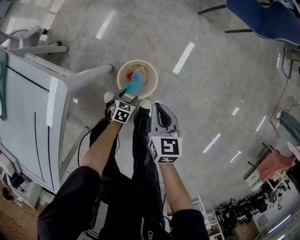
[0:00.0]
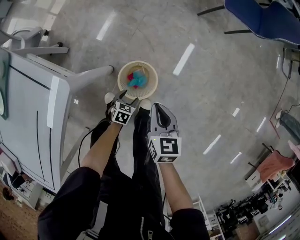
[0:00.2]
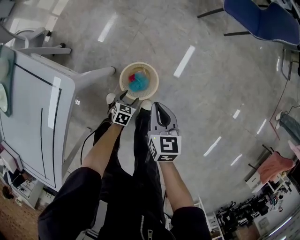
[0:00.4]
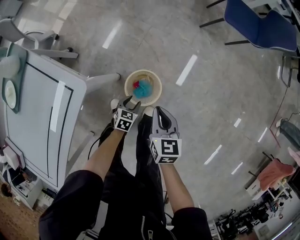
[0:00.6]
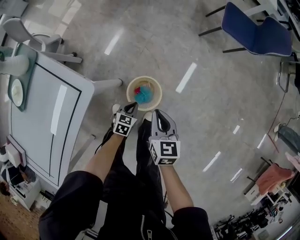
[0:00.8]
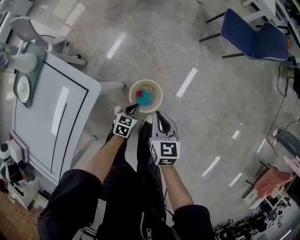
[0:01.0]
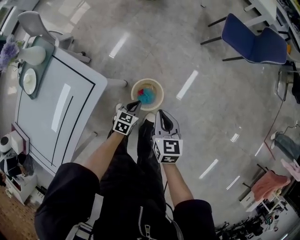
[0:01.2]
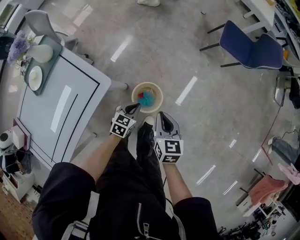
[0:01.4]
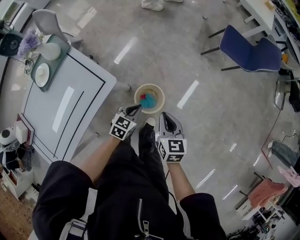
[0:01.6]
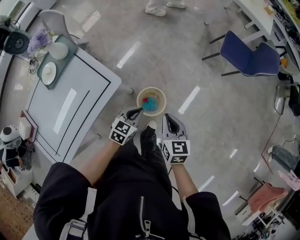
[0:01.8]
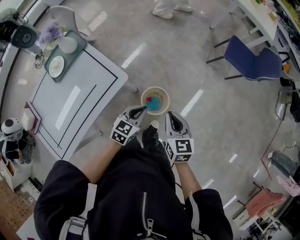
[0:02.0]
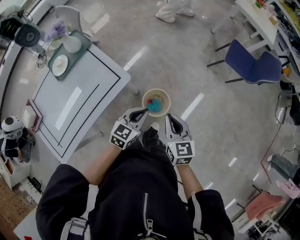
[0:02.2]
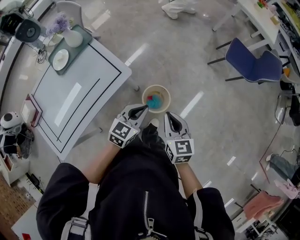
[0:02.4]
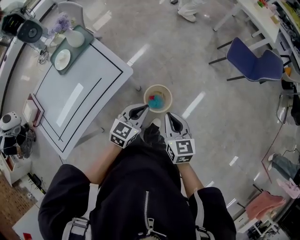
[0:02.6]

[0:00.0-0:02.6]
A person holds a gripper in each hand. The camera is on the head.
0:00.0 to 0:01.2: The right gripper shifts some 15 cm upward, while the left gripper is displaced upward by approximately 25 cm, and closes.
0:01.2 to 0:02.6: The left gripper travels upward by some 30 cm, and swivels approximately 20 degrees; the right gripper shifts roughly 15 cm upward and backward.

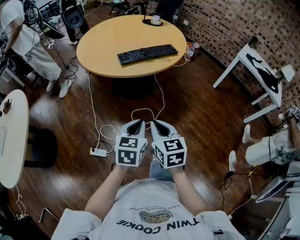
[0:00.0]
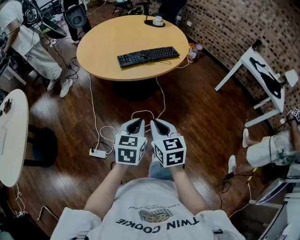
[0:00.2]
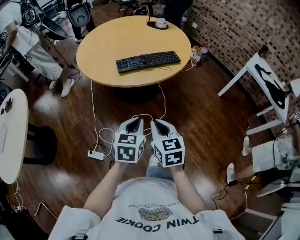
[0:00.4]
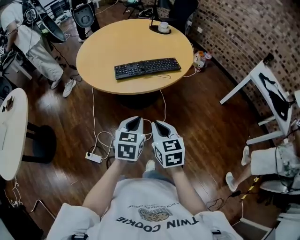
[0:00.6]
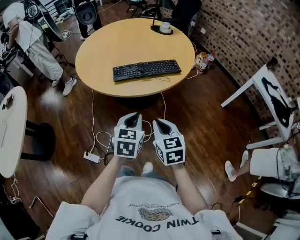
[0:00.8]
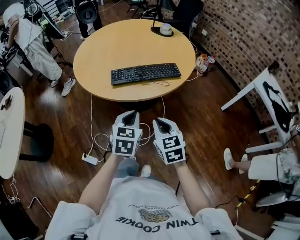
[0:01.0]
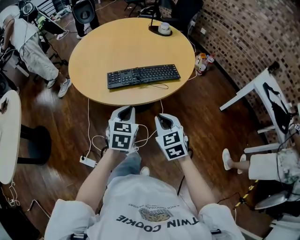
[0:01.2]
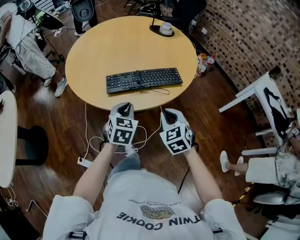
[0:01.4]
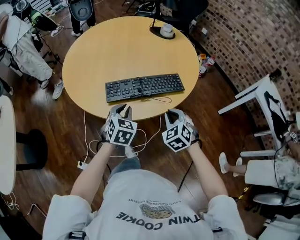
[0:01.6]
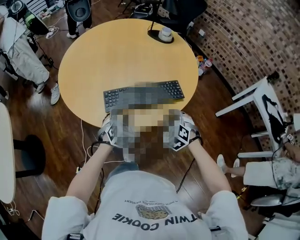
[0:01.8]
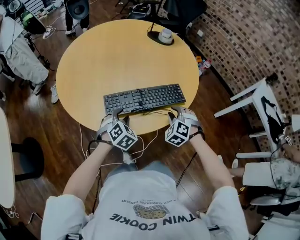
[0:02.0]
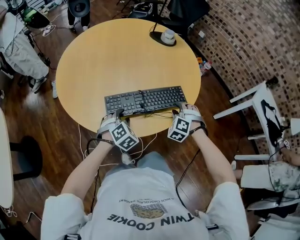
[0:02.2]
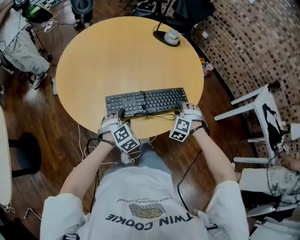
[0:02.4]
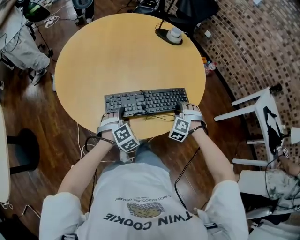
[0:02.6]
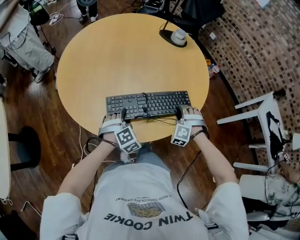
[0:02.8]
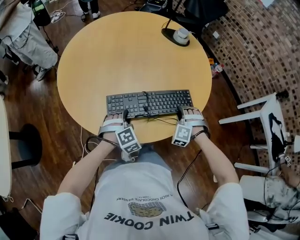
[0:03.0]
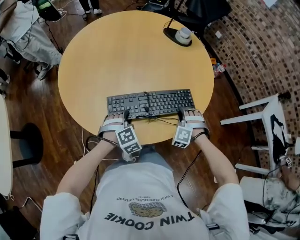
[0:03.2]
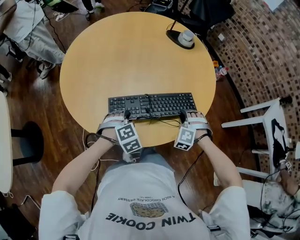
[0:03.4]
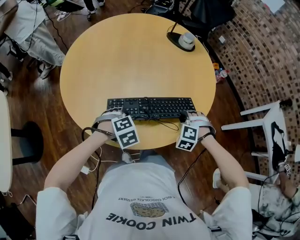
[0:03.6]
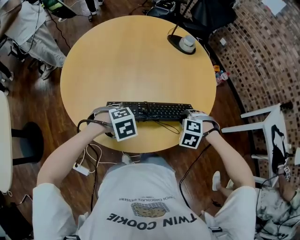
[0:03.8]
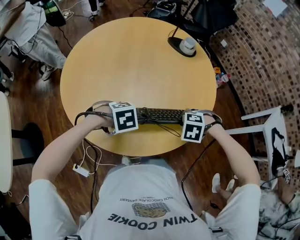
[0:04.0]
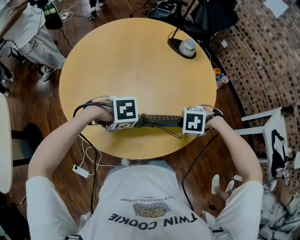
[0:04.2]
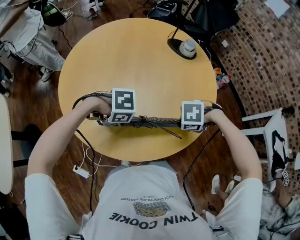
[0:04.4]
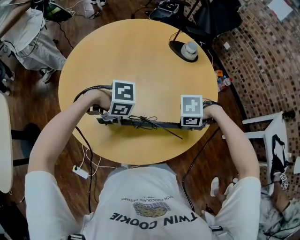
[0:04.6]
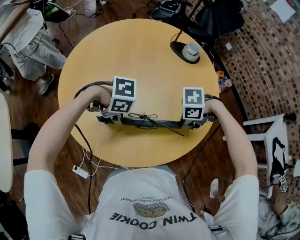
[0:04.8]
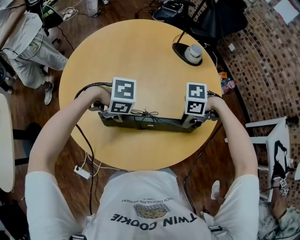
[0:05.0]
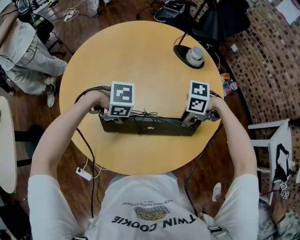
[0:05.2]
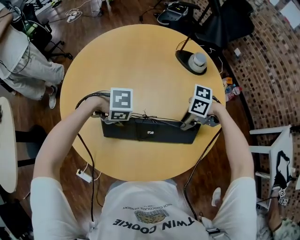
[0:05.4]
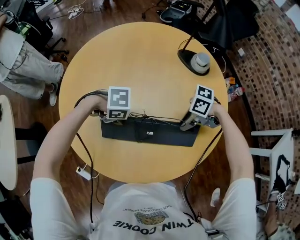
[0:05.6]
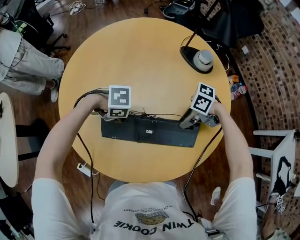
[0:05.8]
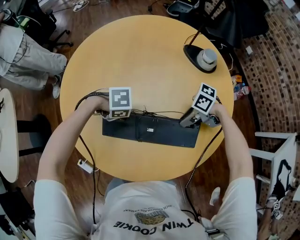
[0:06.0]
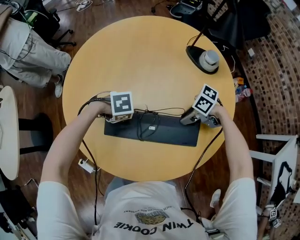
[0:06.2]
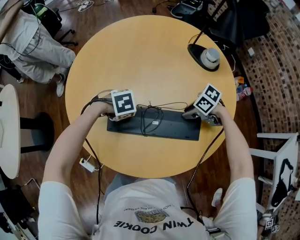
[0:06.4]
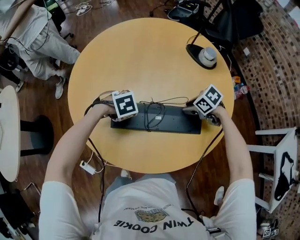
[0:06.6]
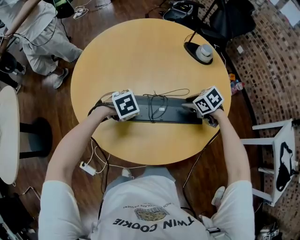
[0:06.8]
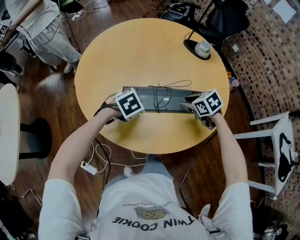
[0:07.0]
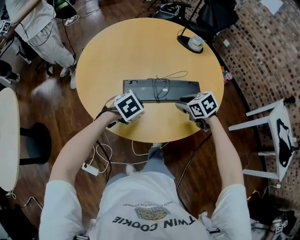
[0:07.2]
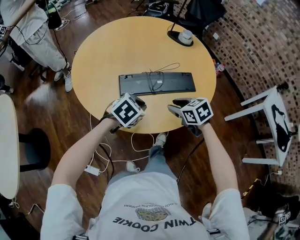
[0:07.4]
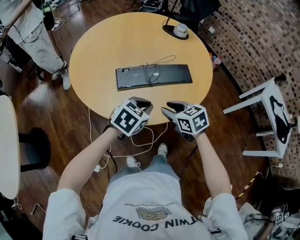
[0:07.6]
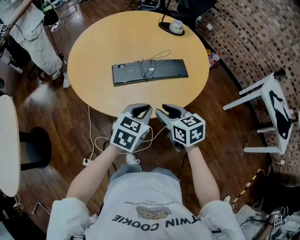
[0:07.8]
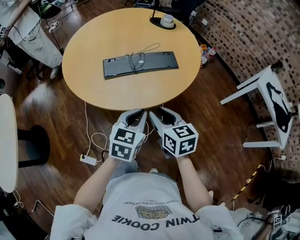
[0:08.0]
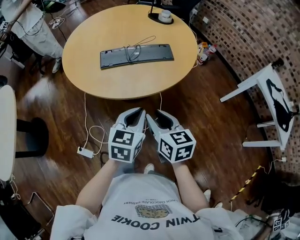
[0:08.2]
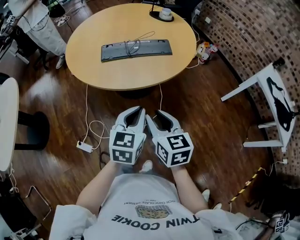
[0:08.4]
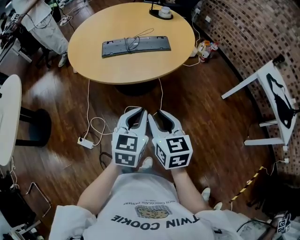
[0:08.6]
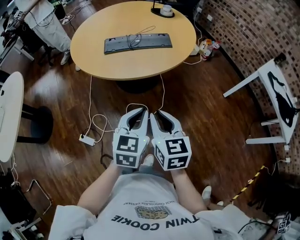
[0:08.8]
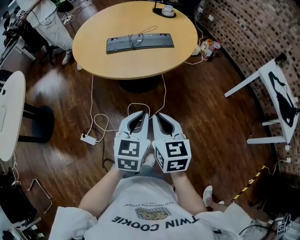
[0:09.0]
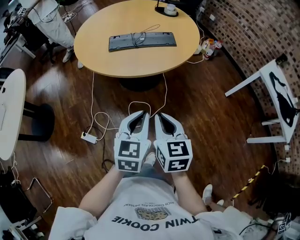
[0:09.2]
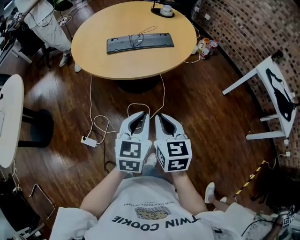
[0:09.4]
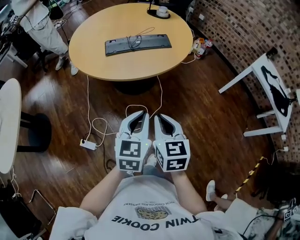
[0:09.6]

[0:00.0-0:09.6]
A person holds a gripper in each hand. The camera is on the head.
0:00.0 to 0:01.6: The two grippers travel together, forward, roughly 40 cm. The left gripper swivels roughly 20 degrees. The right gripper twists roughly 50 degrees counterclockwise, seen from behind.
0:01.6 to 0:03.2: The left gripper heads downward and forward, covering approximately 20 cm, turns by some 40 degrees, and opens its fingers, while the right gripper travels forward and downward by some 25 cm, rotates around the line of its fingers by about 50 degrees, counterclockwise from behind, and opens.
0:03.2 to 0:04.8: Both grippers move upward, some 10 cm. The left gripper swivels roughly 70 degrees. Meanwhile the right gripper turns by some 80 degrees.
0:04.8 to 0:06.4: The right gripper ends up approximately 15 cm from where it was, and rotates roughly 30 degrees. Meanwhile the left gripper moves some 15 cm, and changes its angle by roughly 30 degrees.
0:06.4 to 0:08.0: The right gripper ends up roughly 50 cm from where it was, and rotates some 80 degrees, while the left gripper changes place by roughly 40 cm, angles its fingers upward, by roughly 50 degrees, and closes up.
0:08.0 to 0:09.6: Both grippers move backward, roughly 20 cm. The right gripper closes its fingers.

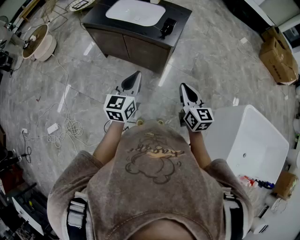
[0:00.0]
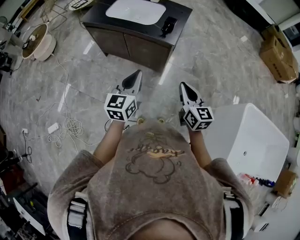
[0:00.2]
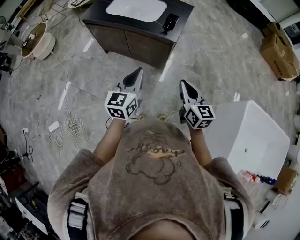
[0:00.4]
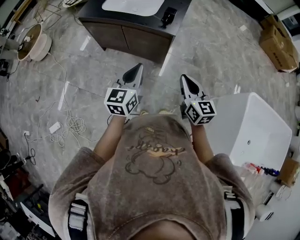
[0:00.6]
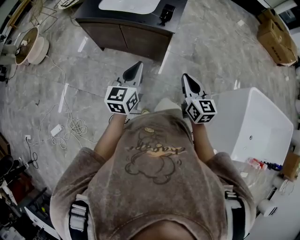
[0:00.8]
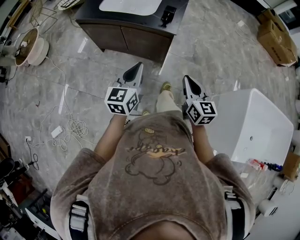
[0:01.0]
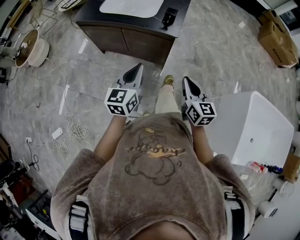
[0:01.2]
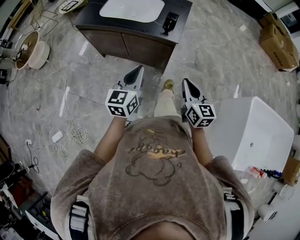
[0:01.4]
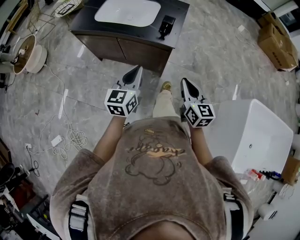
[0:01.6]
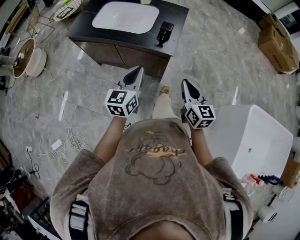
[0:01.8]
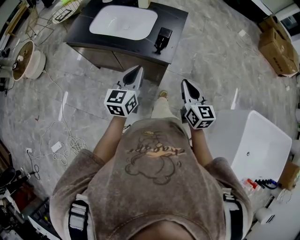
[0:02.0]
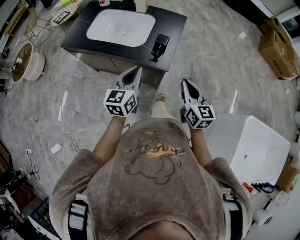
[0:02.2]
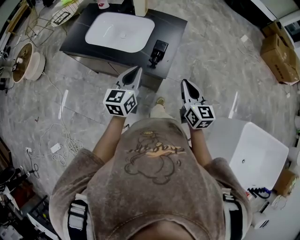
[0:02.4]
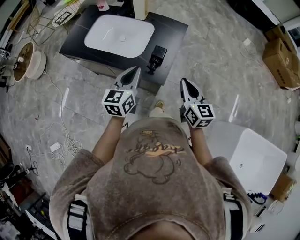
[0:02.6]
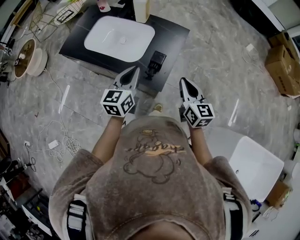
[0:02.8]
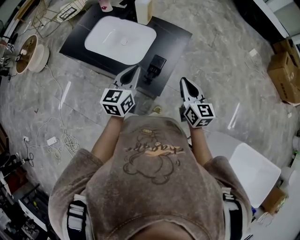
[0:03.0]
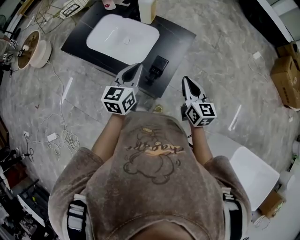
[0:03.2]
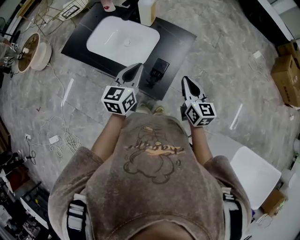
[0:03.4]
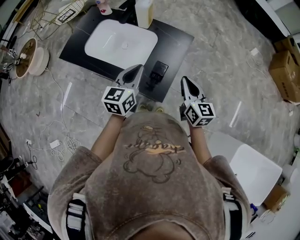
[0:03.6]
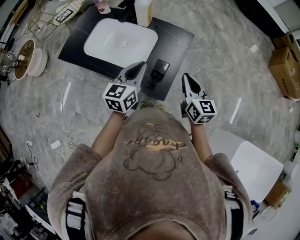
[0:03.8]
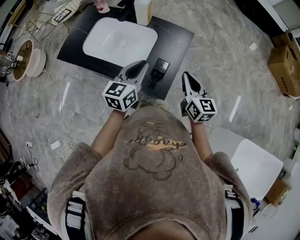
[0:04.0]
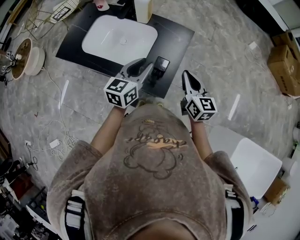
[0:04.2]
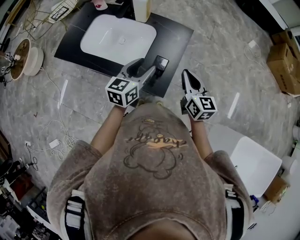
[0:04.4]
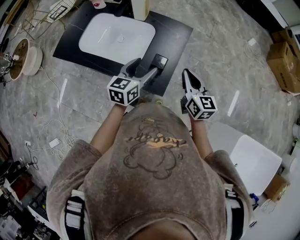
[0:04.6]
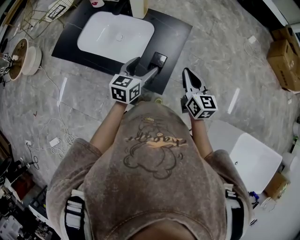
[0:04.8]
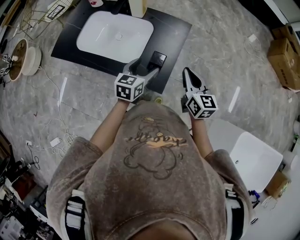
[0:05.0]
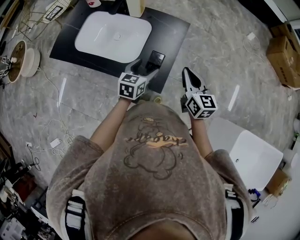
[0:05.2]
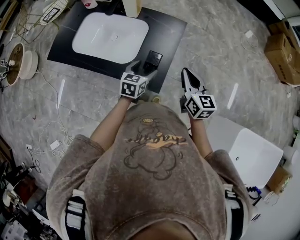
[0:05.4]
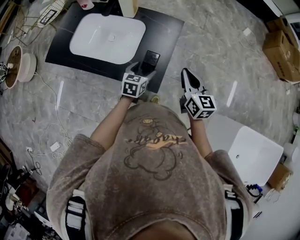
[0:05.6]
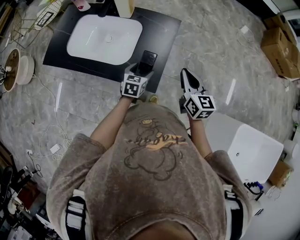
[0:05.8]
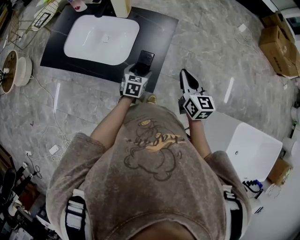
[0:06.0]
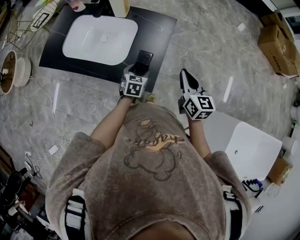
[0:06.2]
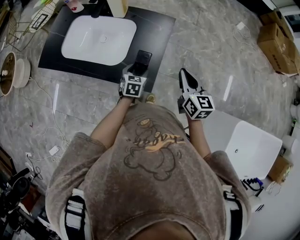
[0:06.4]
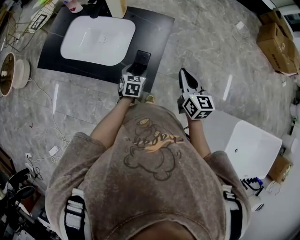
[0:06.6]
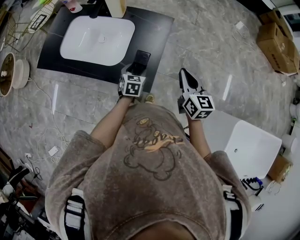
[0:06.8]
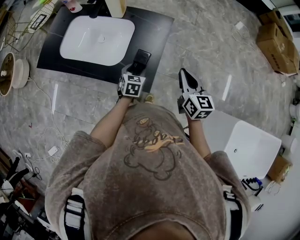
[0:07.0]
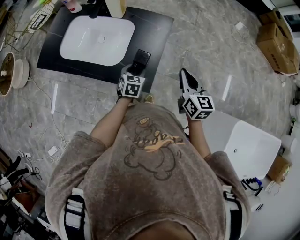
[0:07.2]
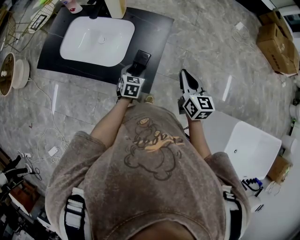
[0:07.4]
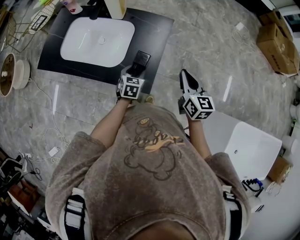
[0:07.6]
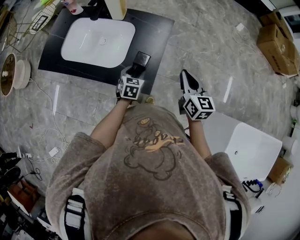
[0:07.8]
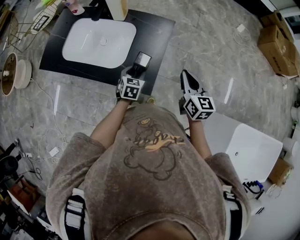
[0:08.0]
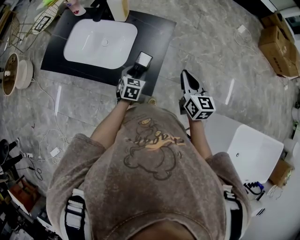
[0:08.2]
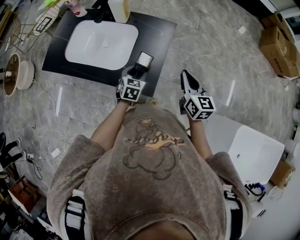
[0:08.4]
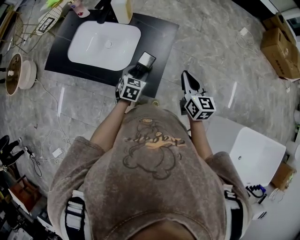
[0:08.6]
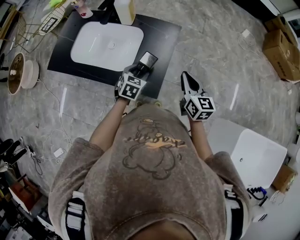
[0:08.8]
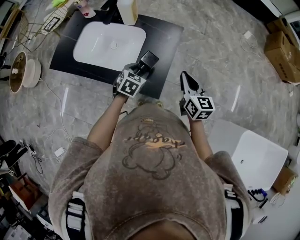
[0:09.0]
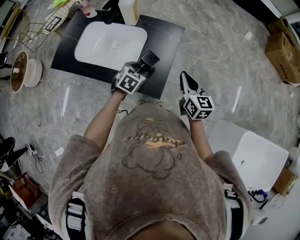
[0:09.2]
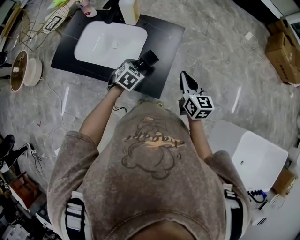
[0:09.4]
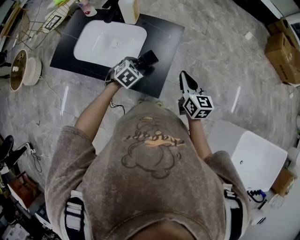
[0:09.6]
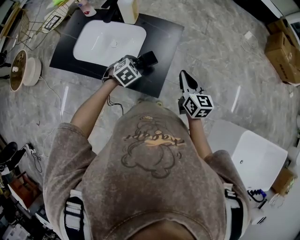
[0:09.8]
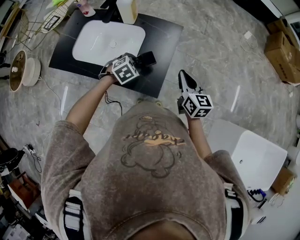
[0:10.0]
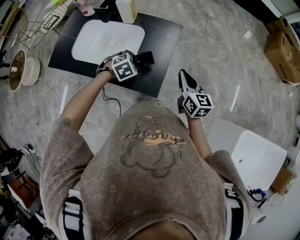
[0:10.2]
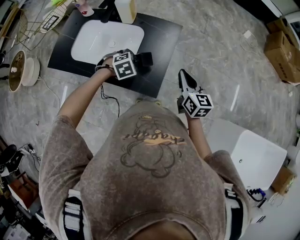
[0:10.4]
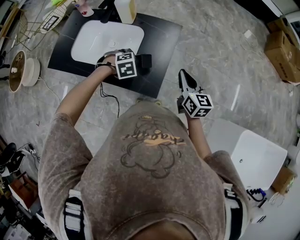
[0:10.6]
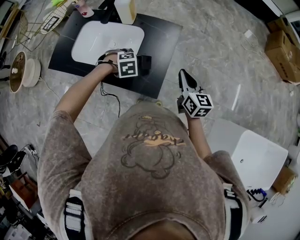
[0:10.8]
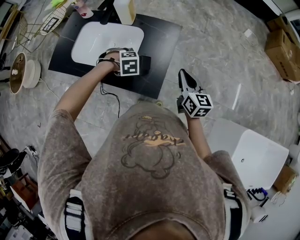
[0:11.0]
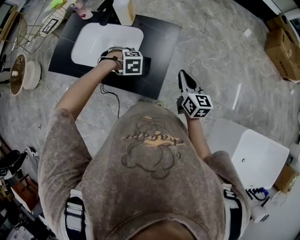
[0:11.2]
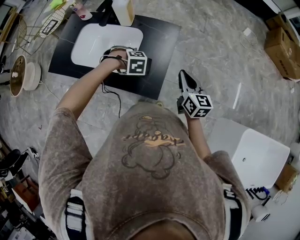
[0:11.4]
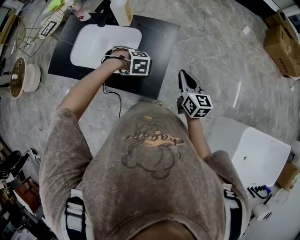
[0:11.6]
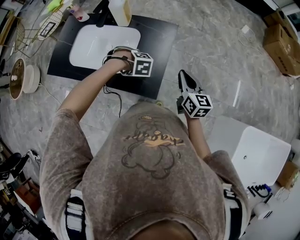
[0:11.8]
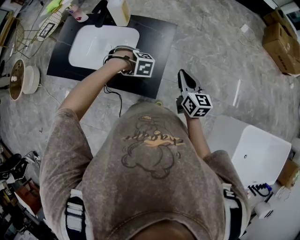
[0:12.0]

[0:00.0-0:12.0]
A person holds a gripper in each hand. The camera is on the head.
0:00.0 to 0:01.6: Both grippers travel together forward, about 10 cm.
0:01.6 to 0:03.0: Both grippers travel together forward, roughly 30 cm.
0:03.0 to 0:04.4: The two grippers go roughly 5 cm forward. The left gripper opens up.
0:04.4 to 0:06.0: The left gripper shifts about 20 cm downward, rotates about 30 degrees, and opens up, while the right gripper travels to the right by approximately 5 cm.
0:06.0 to 0:07.6: The grippers stay close to where they were, moving slightly.
0:07.6 to 0:09.0: The left gripper moves upward, about 5 cm.
0:09.0 to 0:10.4: The left gripper rotates approximately 40 degrees.
0:10.4 to 0:12.0: The left gripper turns by about 30 degrees.
